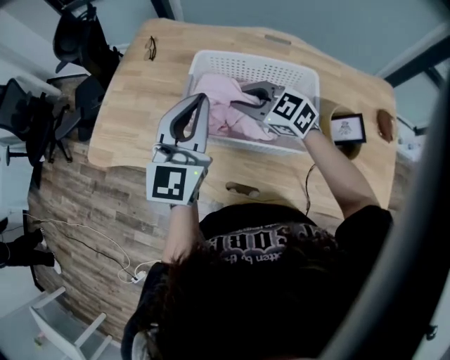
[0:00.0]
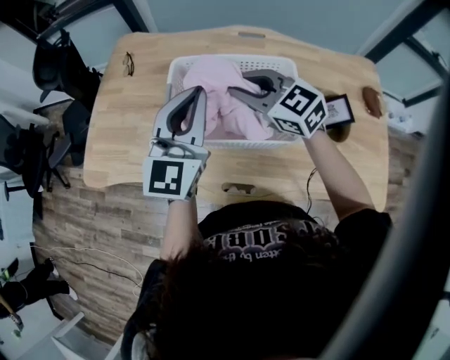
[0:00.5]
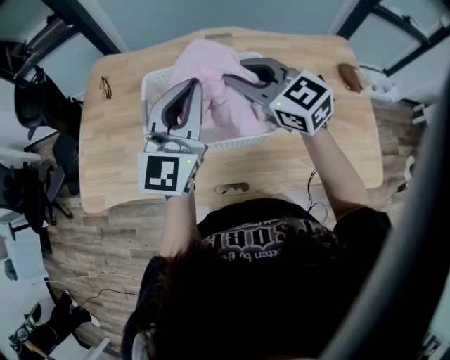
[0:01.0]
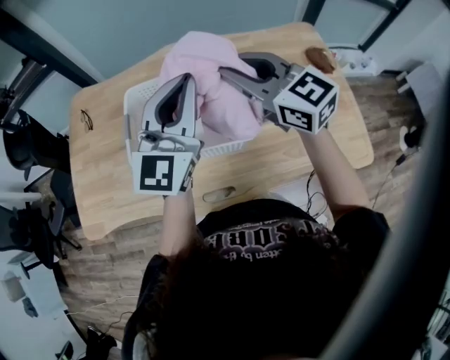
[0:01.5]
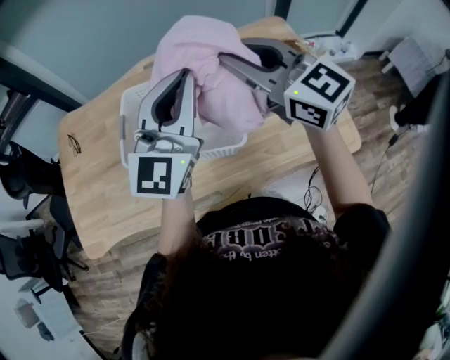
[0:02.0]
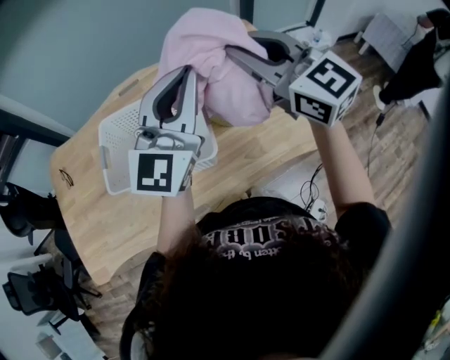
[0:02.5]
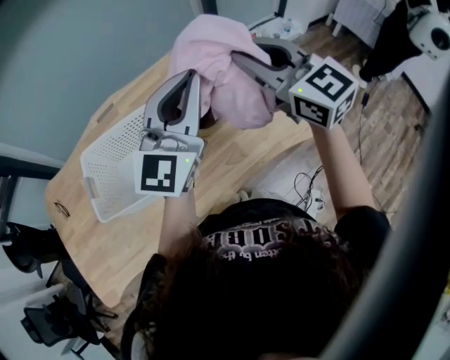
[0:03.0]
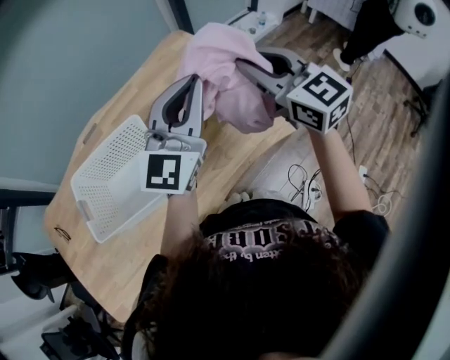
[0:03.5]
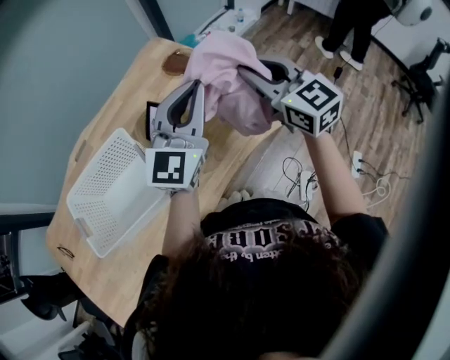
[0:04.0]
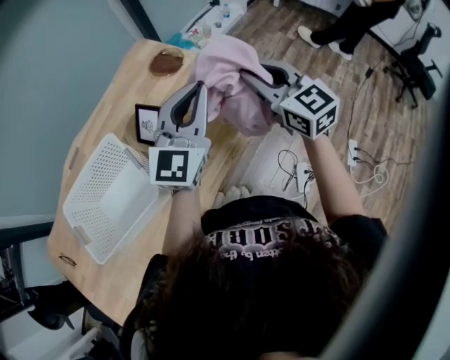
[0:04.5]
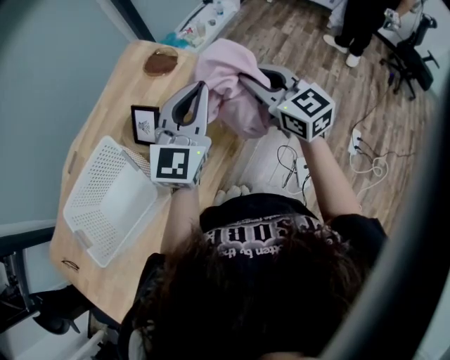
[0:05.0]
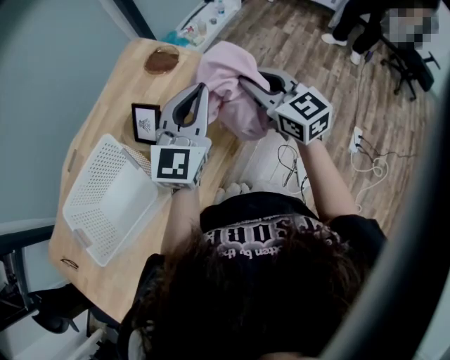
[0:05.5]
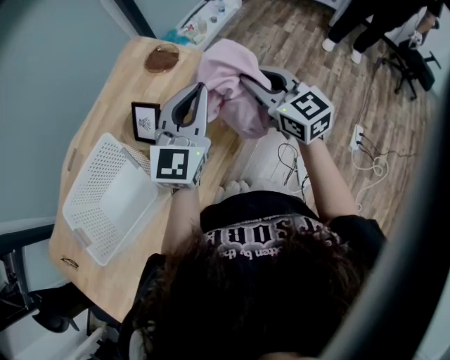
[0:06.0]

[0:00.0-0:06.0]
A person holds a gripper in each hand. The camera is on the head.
0:00.0 to 0:02.0: The left gripper changes place by about 25 cm, and changes its angle by some 40 degrees. The right gripper shifts by about 35 cm, and turns by approximately 50 degrees.
0:02.0 to 0:04.0: The left gripper changes place by approximately 30 cm, and changes its angle by about 30 degrees, while the right gripper moves approximately 35 cm, and turns by some 40 degrees.
0:04.0 to 0:06.0: The right gripper shifts about 5 cm downward. Meanwhile the left gripper ends up about 5 cm from where it was.

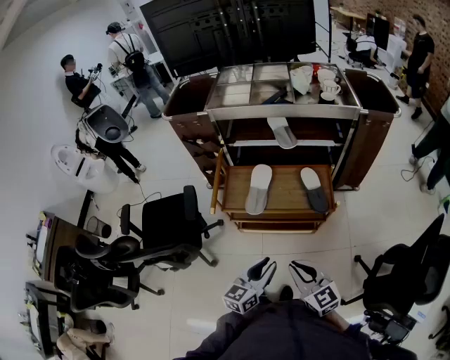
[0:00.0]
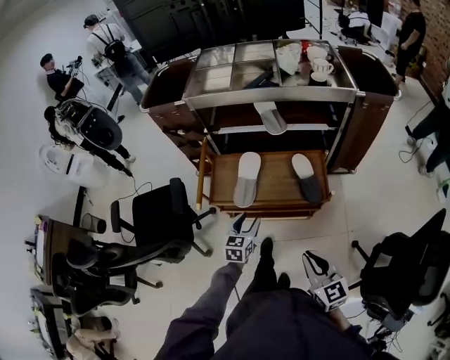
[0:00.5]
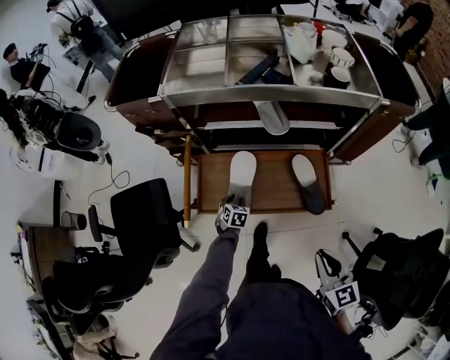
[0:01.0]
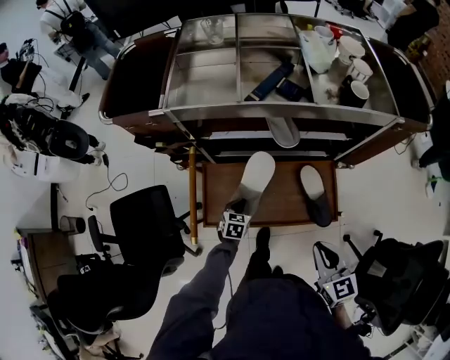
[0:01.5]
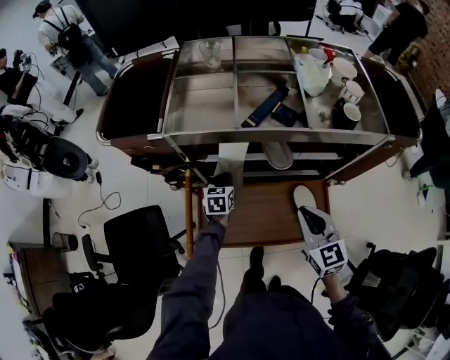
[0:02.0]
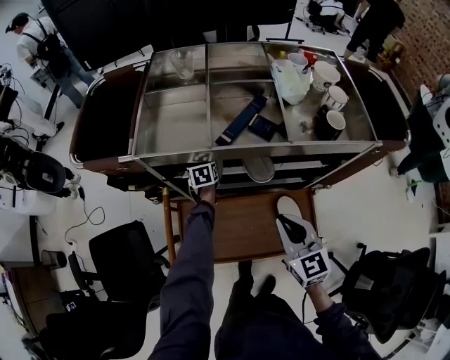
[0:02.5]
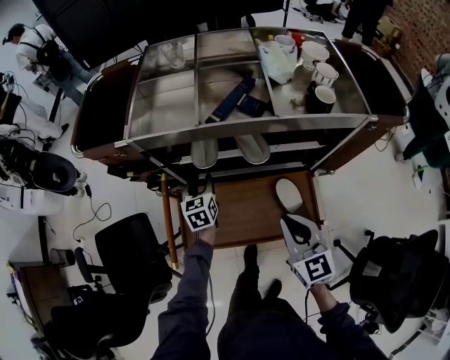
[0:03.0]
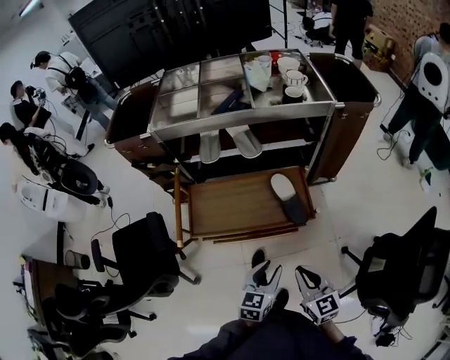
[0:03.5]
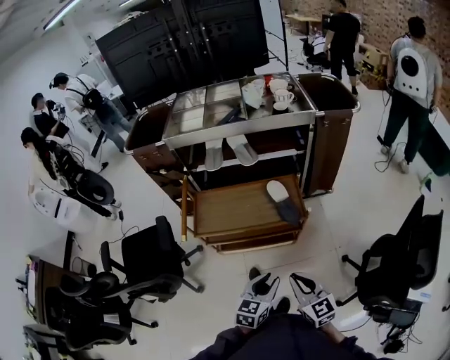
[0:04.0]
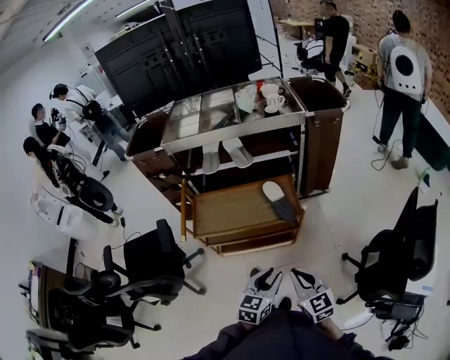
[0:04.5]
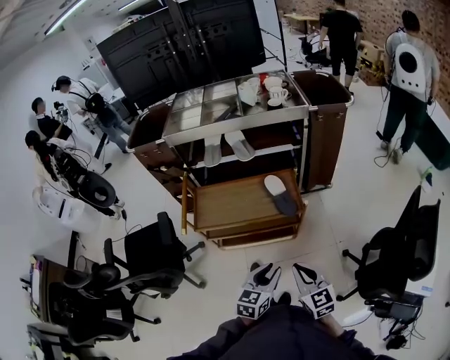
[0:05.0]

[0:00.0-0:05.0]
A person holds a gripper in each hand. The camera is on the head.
0:00.0 to 0:02.5: The two grippers travel together, forward, some 60 cm. The left gripper angles its fingers downward, by roughly 30 degrees, and opens, then closes once more. The right gripper rotates about 20 degrees.
0:02.5 to 0:05.0: Both grippers are carried backward, some 60 cm. The left gripper rotates some 30 degrees, and opens its fingers.

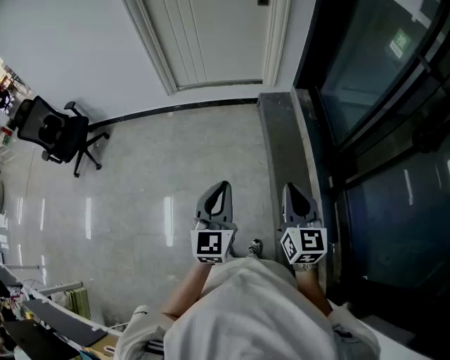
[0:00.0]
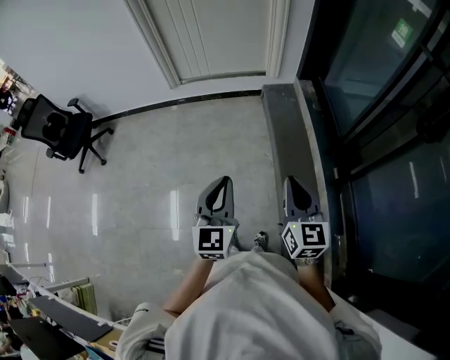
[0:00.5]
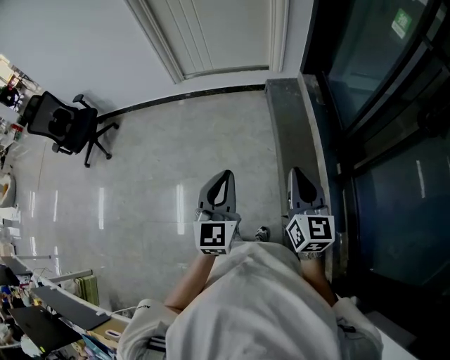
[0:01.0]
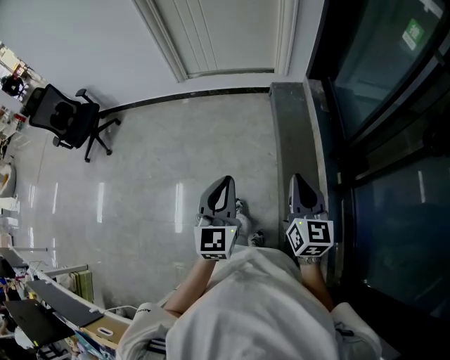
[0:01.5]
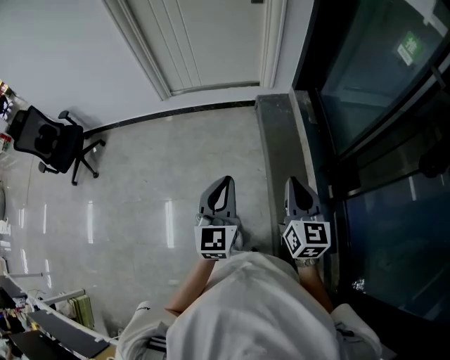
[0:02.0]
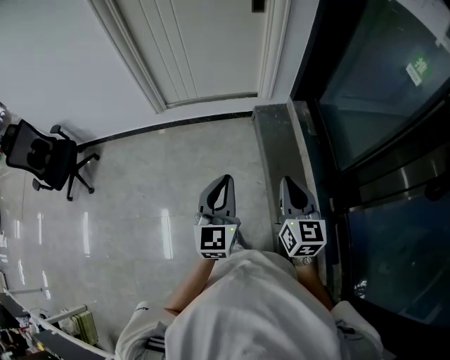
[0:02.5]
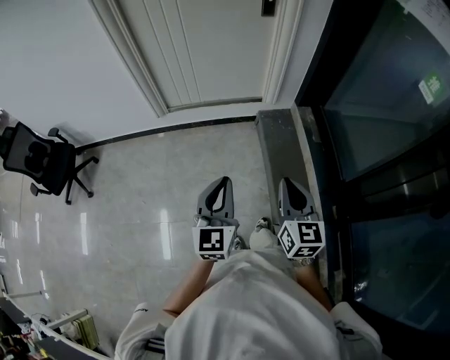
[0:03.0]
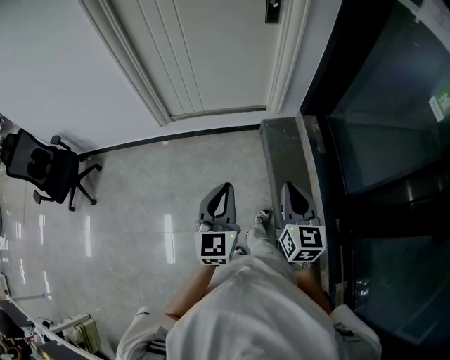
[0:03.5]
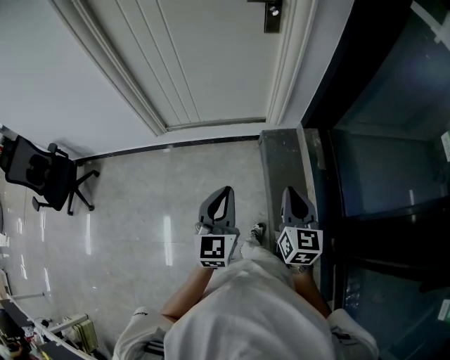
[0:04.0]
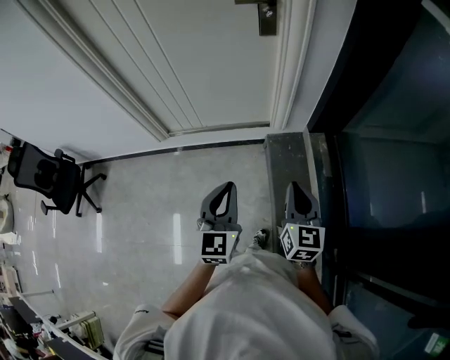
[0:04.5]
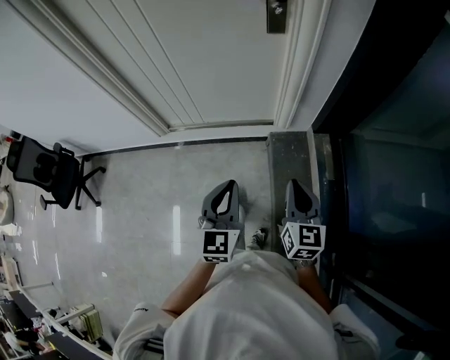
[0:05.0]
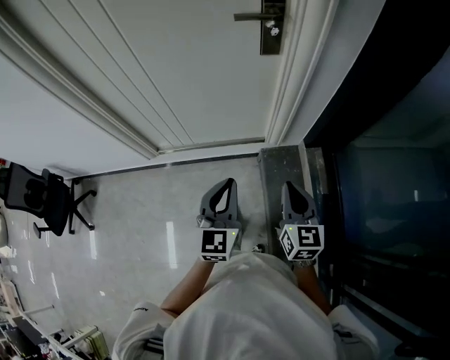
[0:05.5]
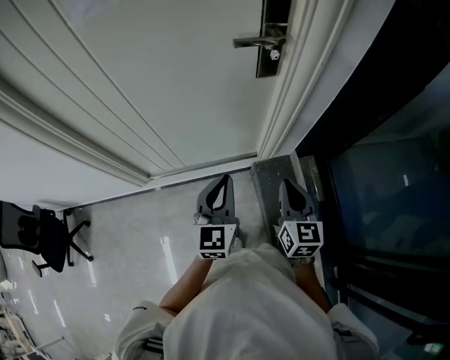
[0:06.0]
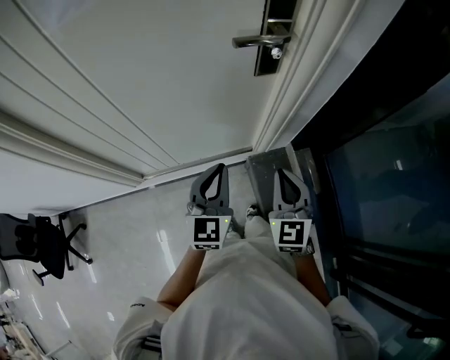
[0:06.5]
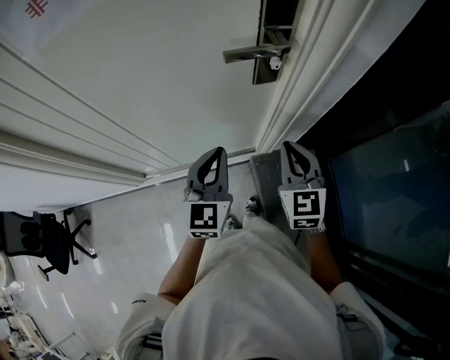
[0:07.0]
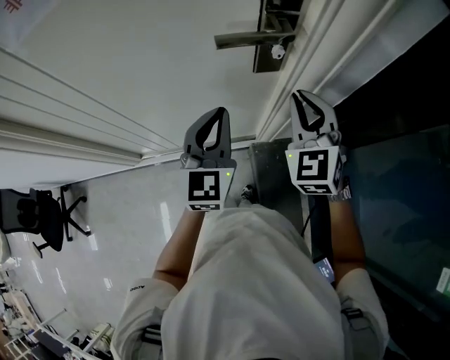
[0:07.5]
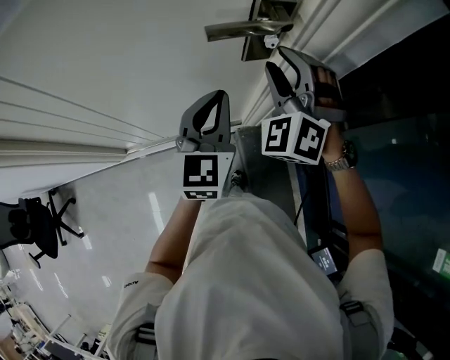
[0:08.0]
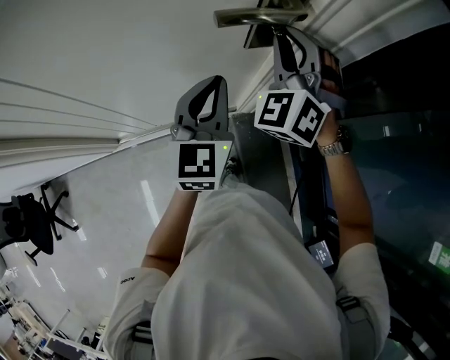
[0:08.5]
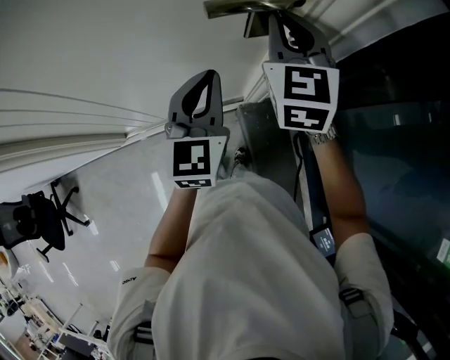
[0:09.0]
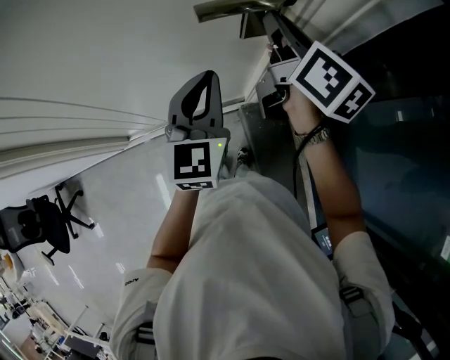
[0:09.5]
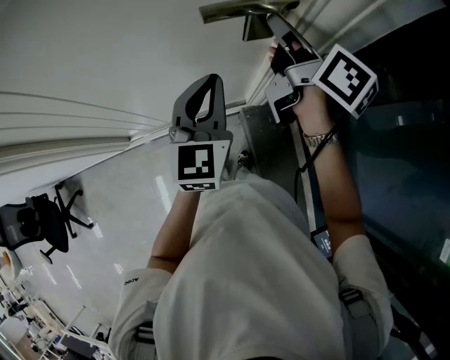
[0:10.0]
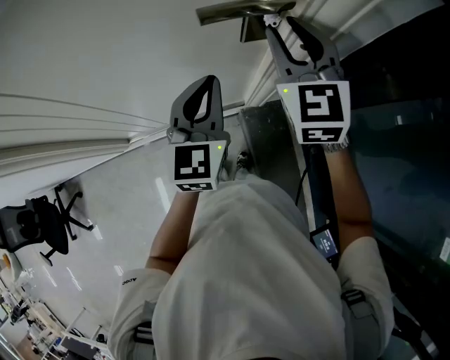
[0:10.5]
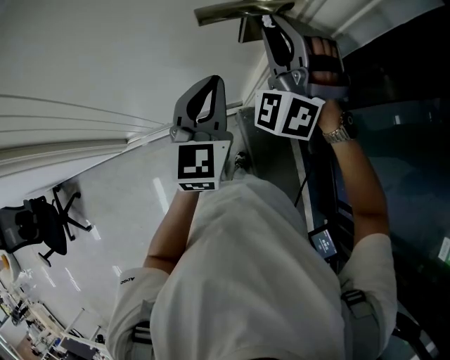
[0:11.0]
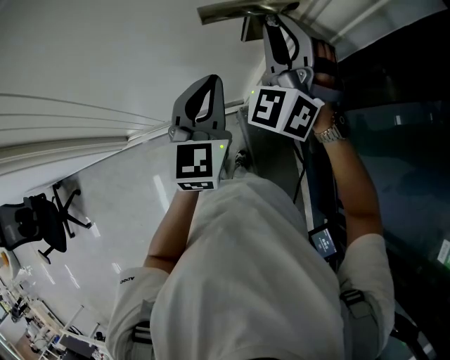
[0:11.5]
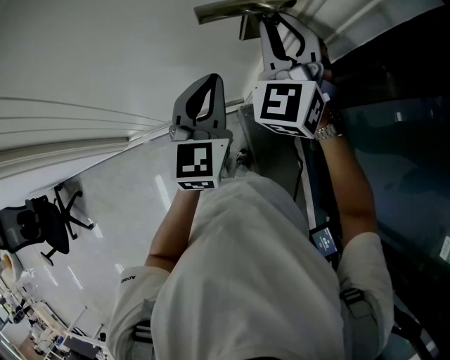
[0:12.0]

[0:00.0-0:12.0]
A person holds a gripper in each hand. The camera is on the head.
0:00.0 to 0:02.0: Both grippers travel together forward, about 10 cm.
0:02.0 to 0:04.0: Both grippers travel together forward, approximately 35 cm.
0:04.0 to 0:06.0: Both grippers travel together forward, about 40 cm.
0:06.0 to 0:08.0: The two grippers go about 25 cm forward. The right gripper twists some 70 degrees counterclockwise, seen from behind, and opens.
0:08.0 to 0:10.0: The right gripper rotates around the line of its fingers by about 110 degrees, clockwise from behind, and closes up.
0:10.0 to 0:12.0: The right gripper rotates around the line of its fingers by approximately 90 degrees, counterclockwise from behind.

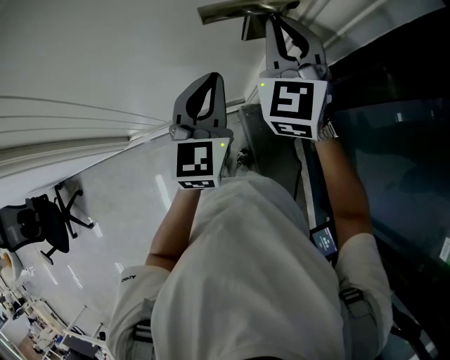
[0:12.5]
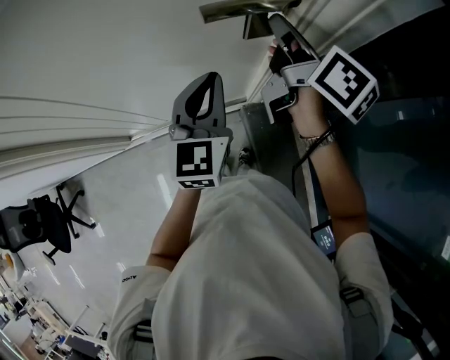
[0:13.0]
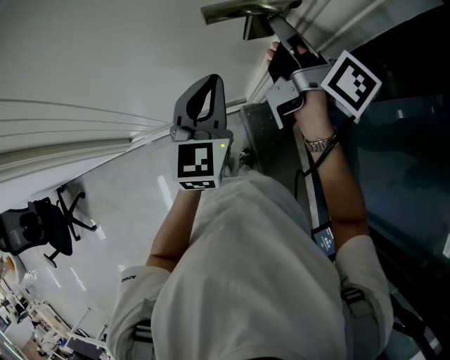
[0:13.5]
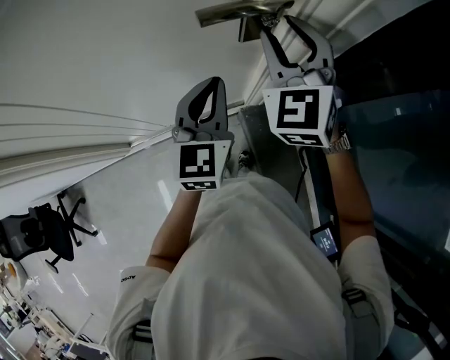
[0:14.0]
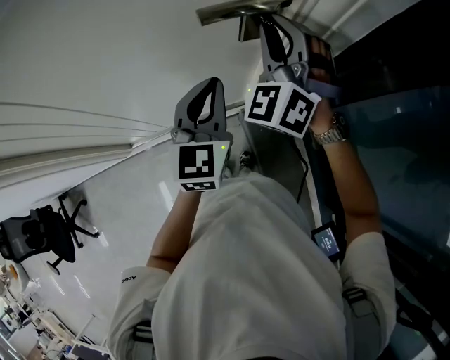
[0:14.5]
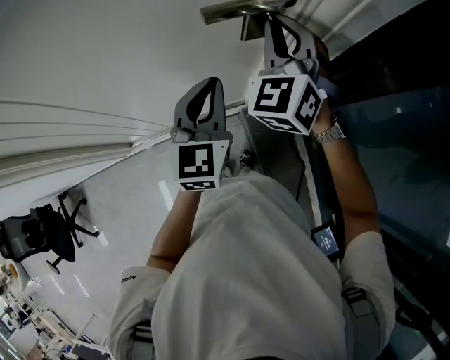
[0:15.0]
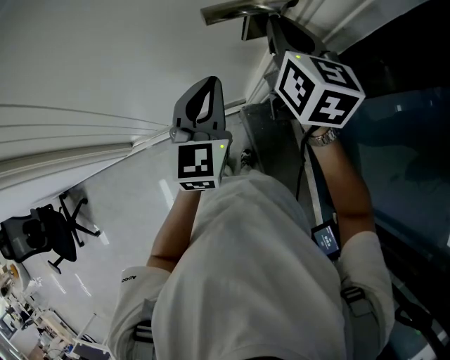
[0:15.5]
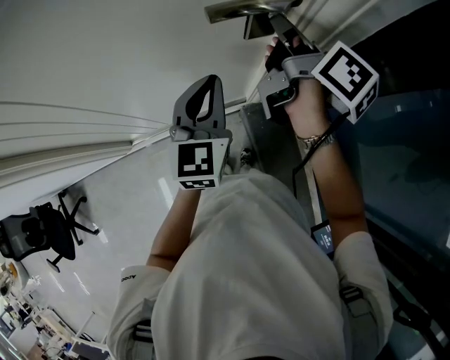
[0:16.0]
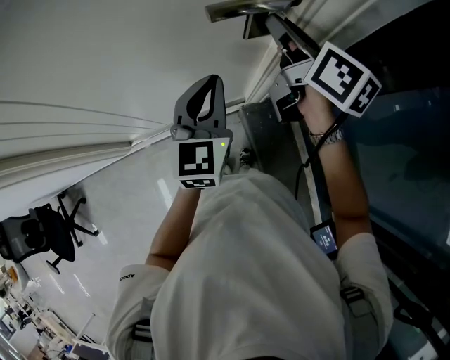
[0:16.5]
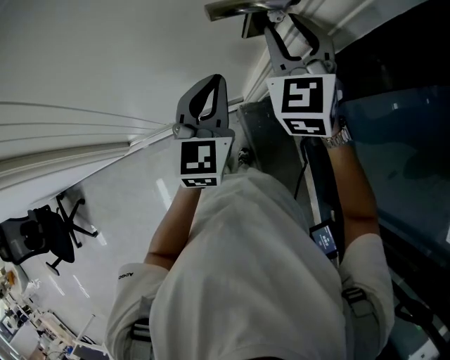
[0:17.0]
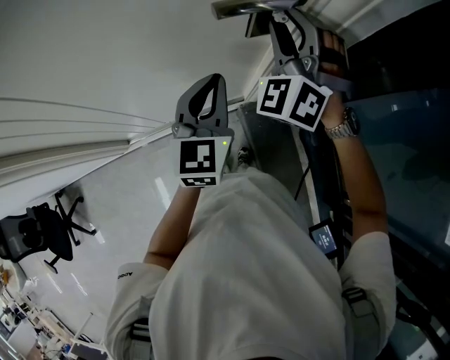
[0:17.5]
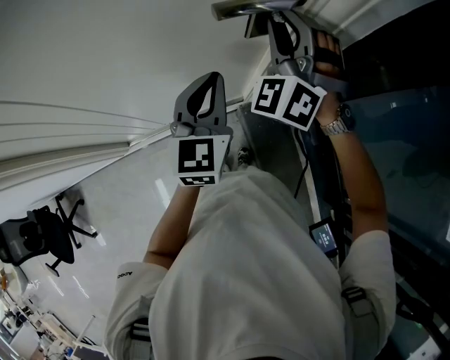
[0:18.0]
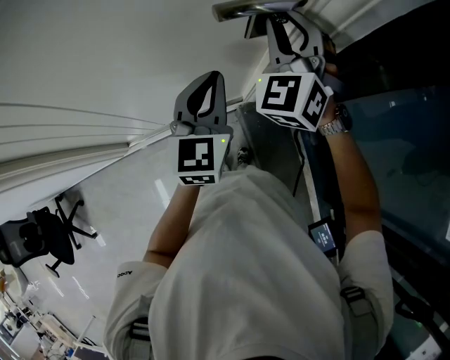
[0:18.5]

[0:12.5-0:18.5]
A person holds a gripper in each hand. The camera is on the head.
0:12.5 to 0:14.5: The right gripper changes its angle by roughly 30 degrees.
0:14.5 to 0:16.5: The right gripper rotates around the line of its fingers by approximately 100 degrees, clockwise from behind.
0:16.5 to 0:18.5: The right gripper twists approximately 90 degrees counterclockwise, seen from behind.
